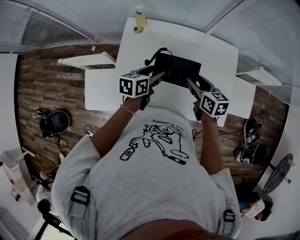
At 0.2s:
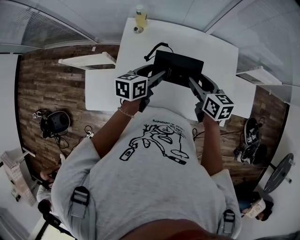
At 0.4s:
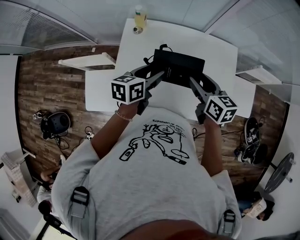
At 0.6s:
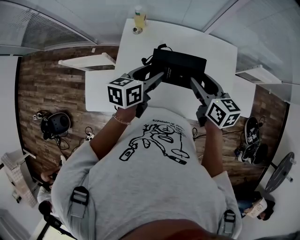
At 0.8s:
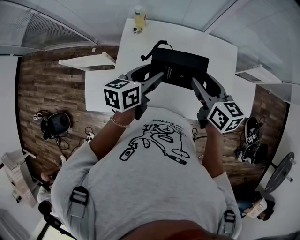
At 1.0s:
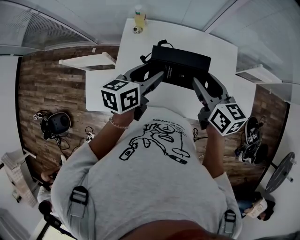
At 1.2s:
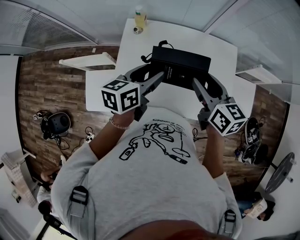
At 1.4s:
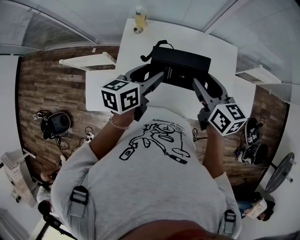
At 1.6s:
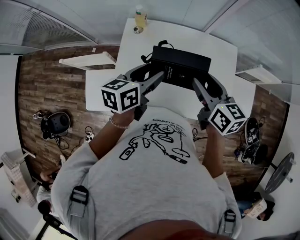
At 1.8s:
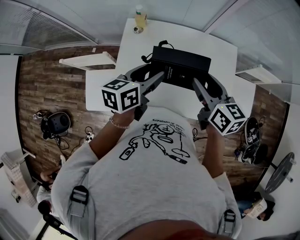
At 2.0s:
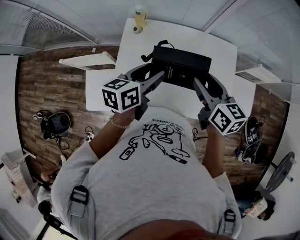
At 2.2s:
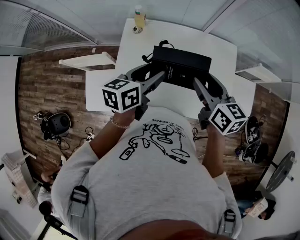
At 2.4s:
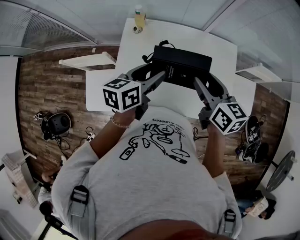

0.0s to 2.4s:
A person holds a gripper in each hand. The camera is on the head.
0.0s to 1.2s: The grippers both shift upward by some 15 cm.
1.2s to 2.4s: Both grippers stay put.

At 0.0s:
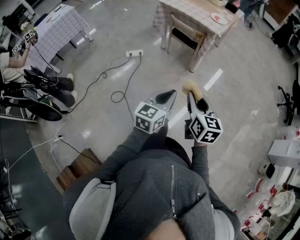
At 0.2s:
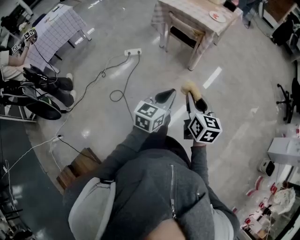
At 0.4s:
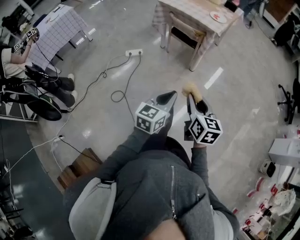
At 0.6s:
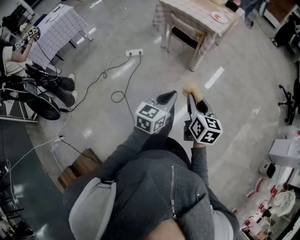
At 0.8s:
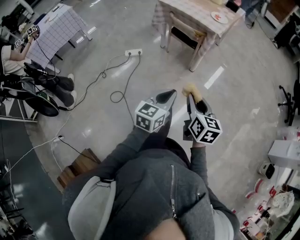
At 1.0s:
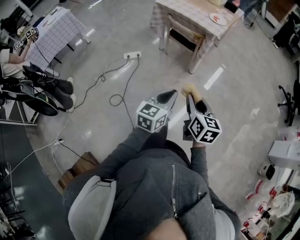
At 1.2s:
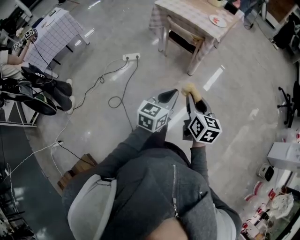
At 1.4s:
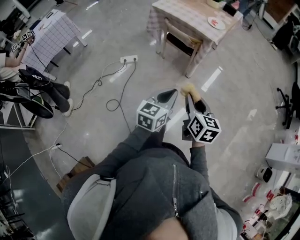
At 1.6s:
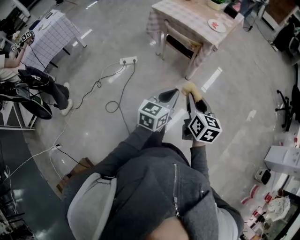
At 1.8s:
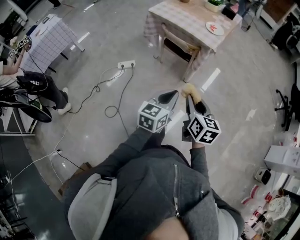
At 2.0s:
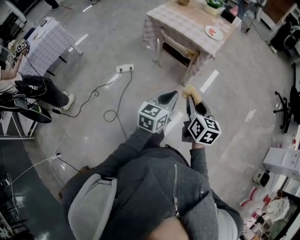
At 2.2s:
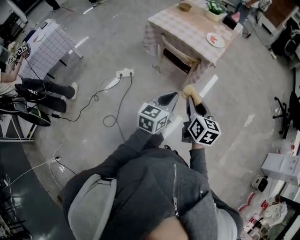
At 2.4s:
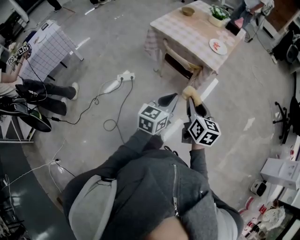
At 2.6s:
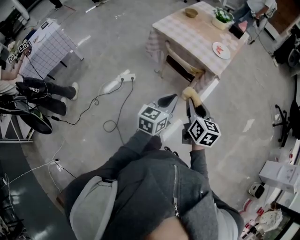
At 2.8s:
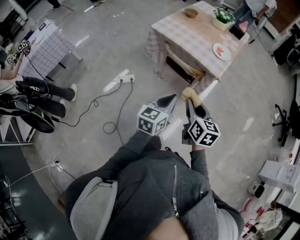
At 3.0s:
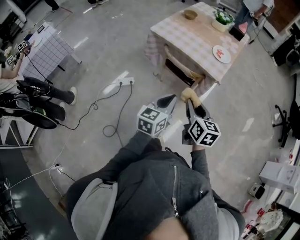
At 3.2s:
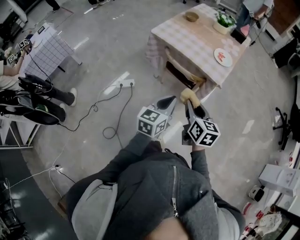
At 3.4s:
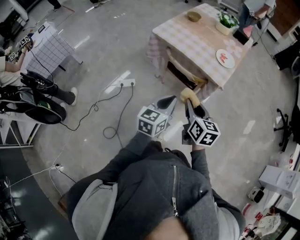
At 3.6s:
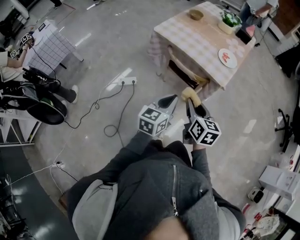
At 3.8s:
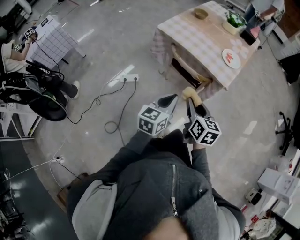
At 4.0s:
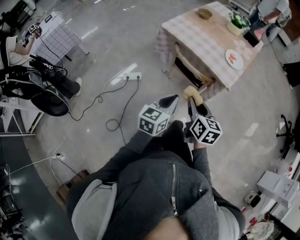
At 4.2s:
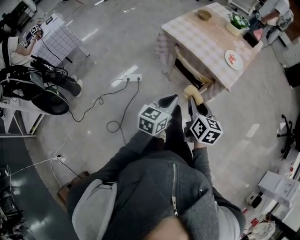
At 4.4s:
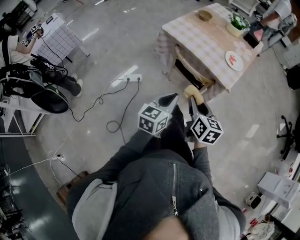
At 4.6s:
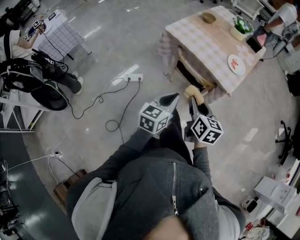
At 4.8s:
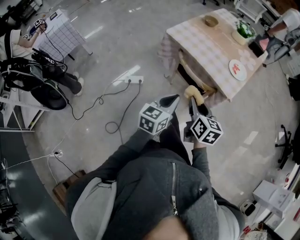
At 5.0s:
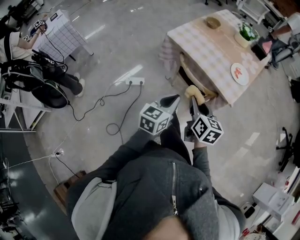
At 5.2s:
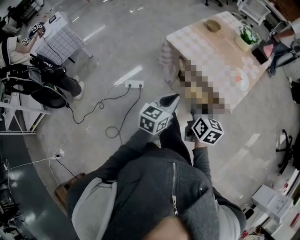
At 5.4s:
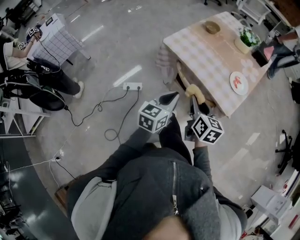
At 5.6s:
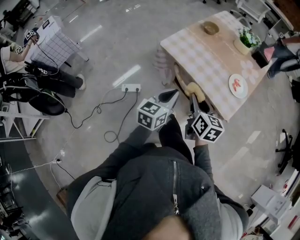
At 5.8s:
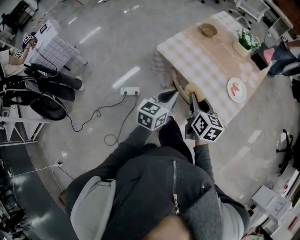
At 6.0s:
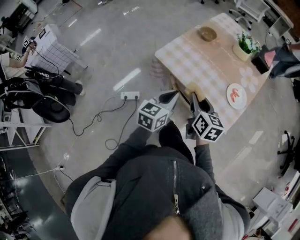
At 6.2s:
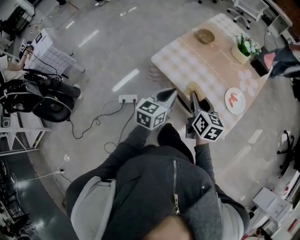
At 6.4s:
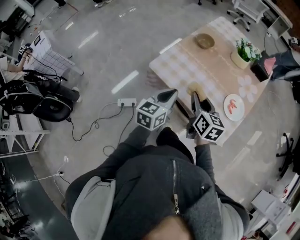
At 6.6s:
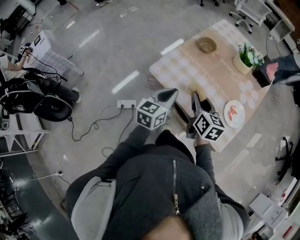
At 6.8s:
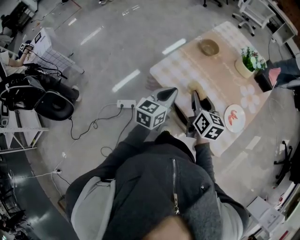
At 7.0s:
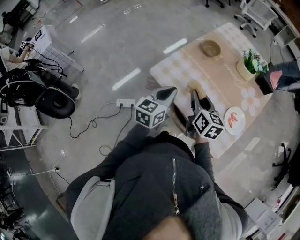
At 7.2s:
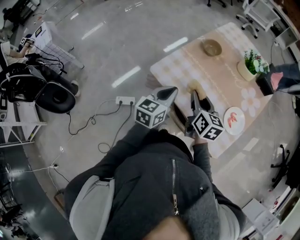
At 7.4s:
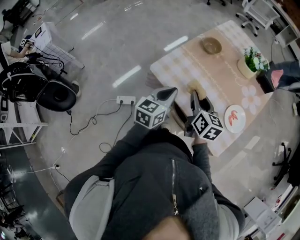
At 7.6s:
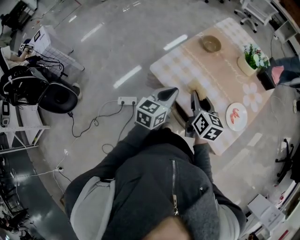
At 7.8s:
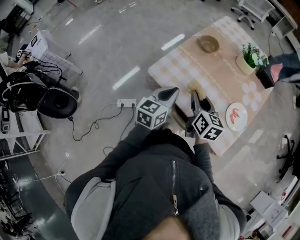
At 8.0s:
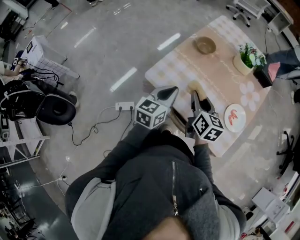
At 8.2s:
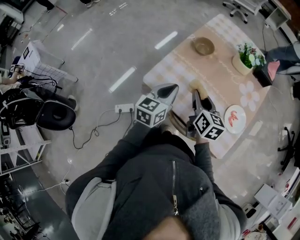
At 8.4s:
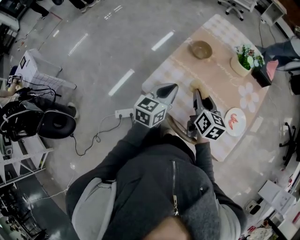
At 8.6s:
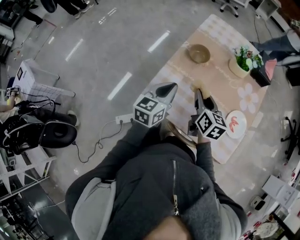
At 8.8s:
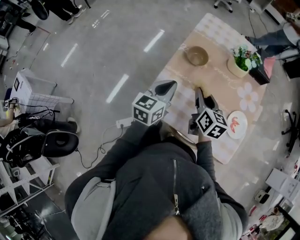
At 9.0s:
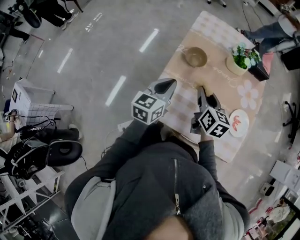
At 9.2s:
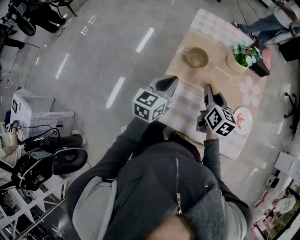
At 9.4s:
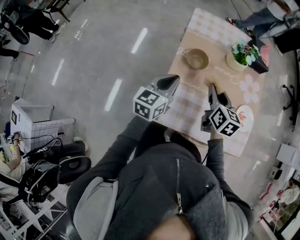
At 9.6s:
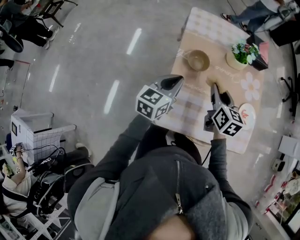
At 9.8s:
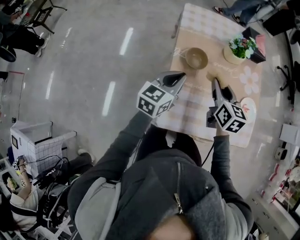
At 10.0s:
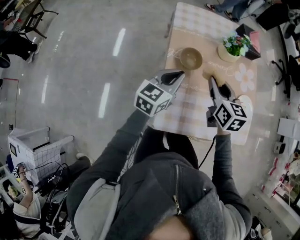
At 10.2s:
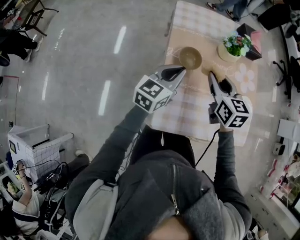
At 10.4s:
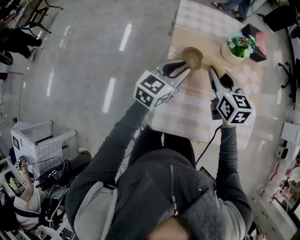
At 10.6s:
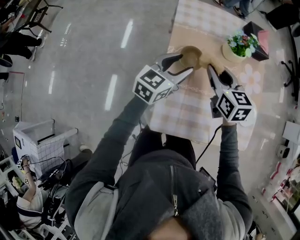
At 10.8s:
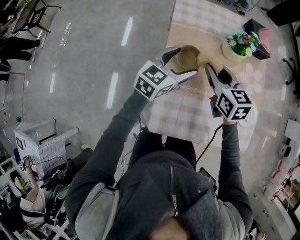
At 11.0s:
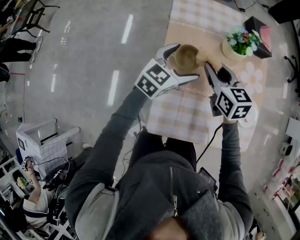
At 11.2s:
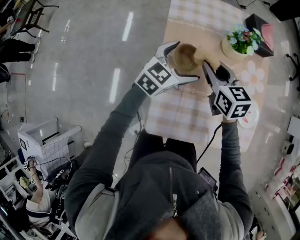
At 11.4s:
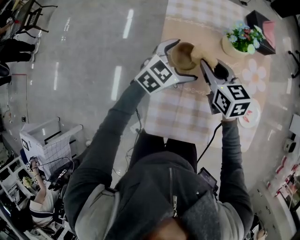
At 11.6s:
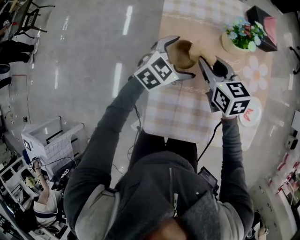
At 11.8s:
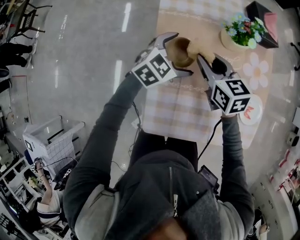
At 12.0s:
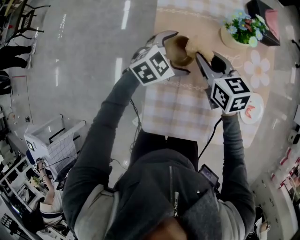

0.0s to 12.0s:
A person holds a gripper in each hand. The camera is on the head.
0.0s to 1.6s: Both grippers travel together forward, some 15 cm.
1.6s to 3.0s: Both grippers travel together forward, about 25 cm.
3.0s to 4.4s: The right gripper goes approximately 5 cm forward.
4.4s to 6.0s: The grippers both shift forward by some 30 cm.
6.0s to 7.6s: Both grippers move forward, some 15 cm.
7.6s to 9.0s: Both grippers move forward, about 20 cm. The right gripper rotates about 20 degrees.
9.0s to 10.4s: The right gripper travels forward and upward by about 10 cm. The left gripper travels forward by about 10 cm, and changes its angle by about 30 degrees.
10.4s to 12.0s: The right gripper is displaced downward and forward by roughly 10 cm. Meanwhile the left gripper goes approximately 15 cm downward, forward and to the right, turns by some 40 degrees, and opens.

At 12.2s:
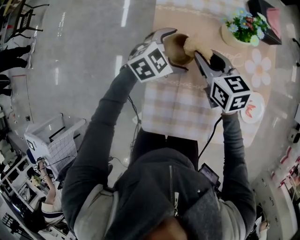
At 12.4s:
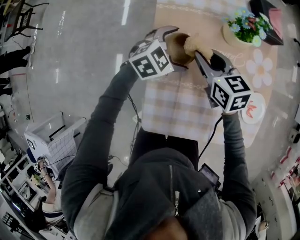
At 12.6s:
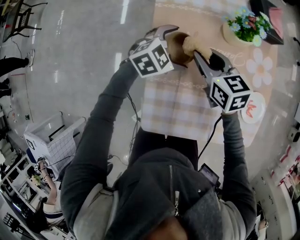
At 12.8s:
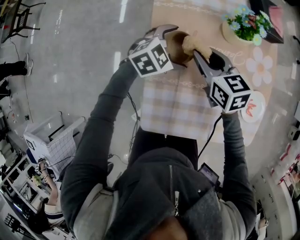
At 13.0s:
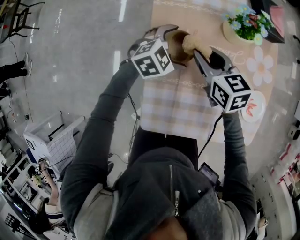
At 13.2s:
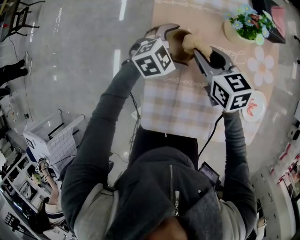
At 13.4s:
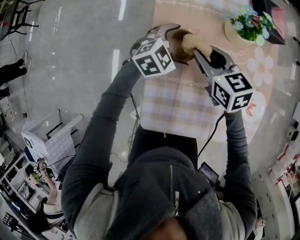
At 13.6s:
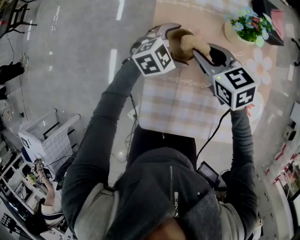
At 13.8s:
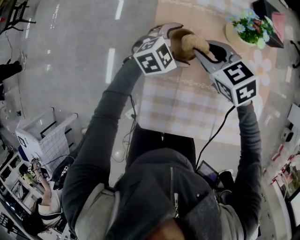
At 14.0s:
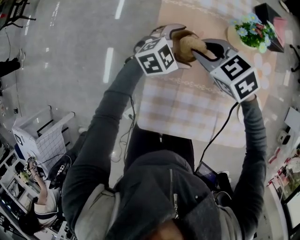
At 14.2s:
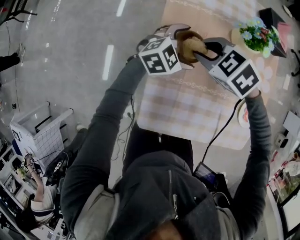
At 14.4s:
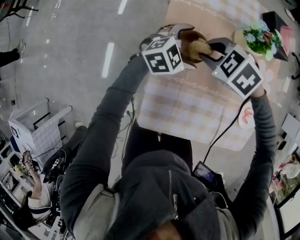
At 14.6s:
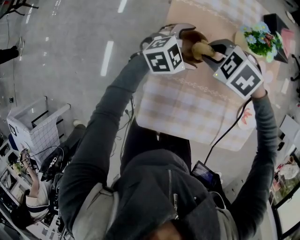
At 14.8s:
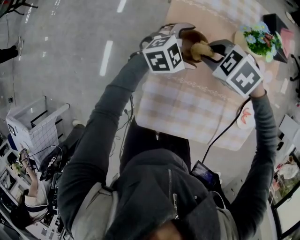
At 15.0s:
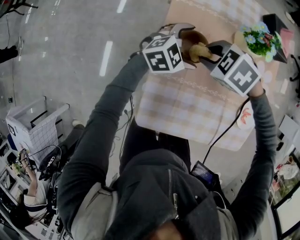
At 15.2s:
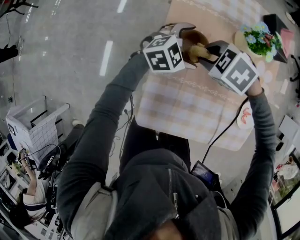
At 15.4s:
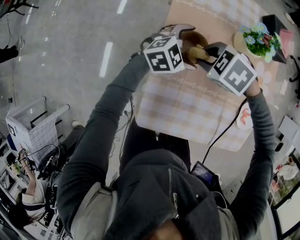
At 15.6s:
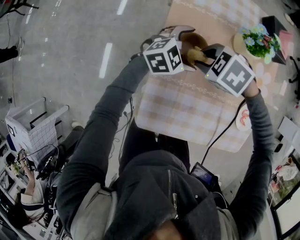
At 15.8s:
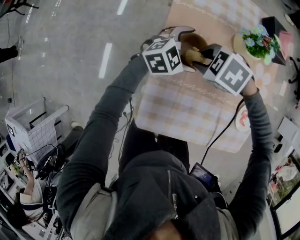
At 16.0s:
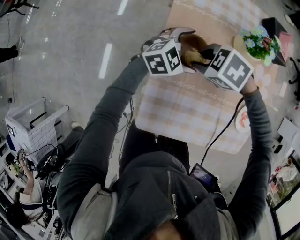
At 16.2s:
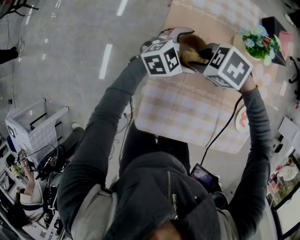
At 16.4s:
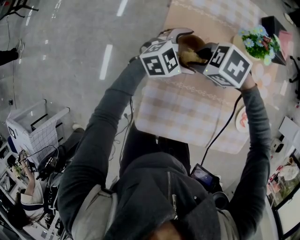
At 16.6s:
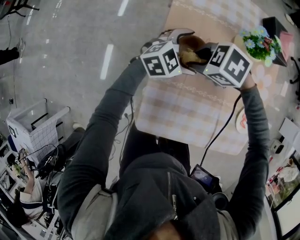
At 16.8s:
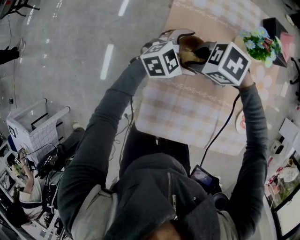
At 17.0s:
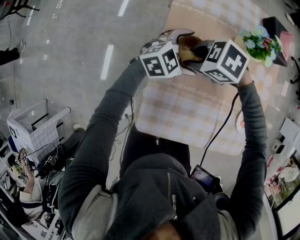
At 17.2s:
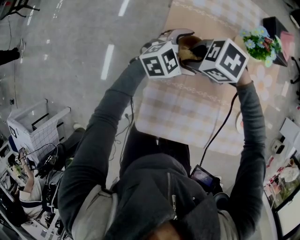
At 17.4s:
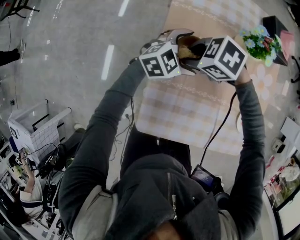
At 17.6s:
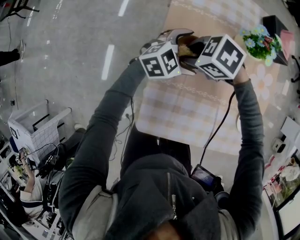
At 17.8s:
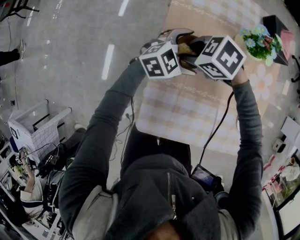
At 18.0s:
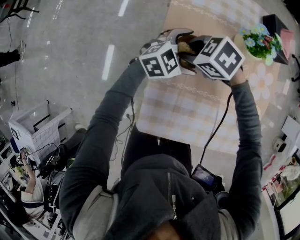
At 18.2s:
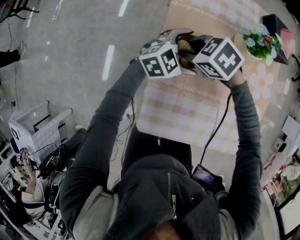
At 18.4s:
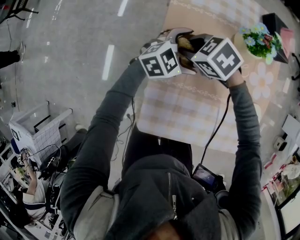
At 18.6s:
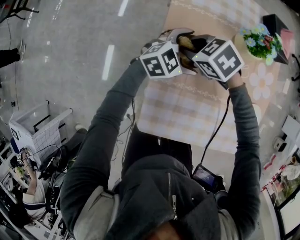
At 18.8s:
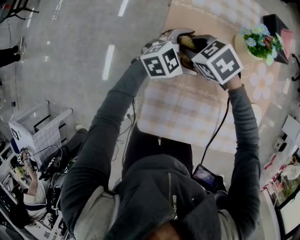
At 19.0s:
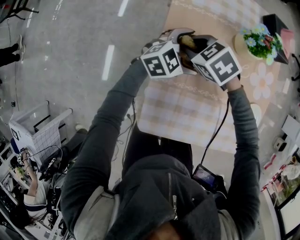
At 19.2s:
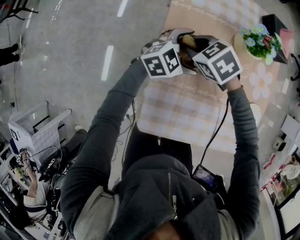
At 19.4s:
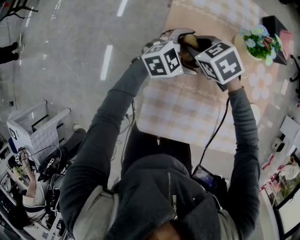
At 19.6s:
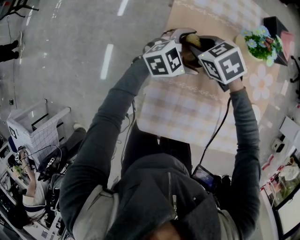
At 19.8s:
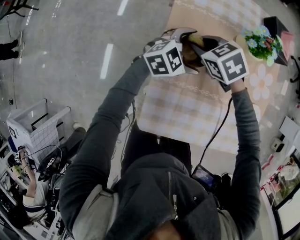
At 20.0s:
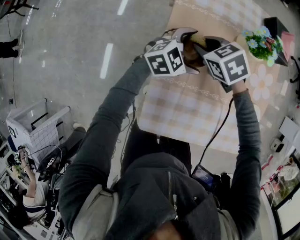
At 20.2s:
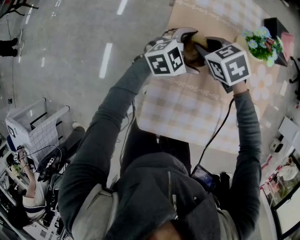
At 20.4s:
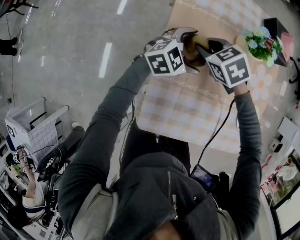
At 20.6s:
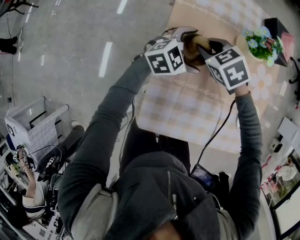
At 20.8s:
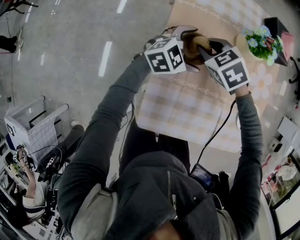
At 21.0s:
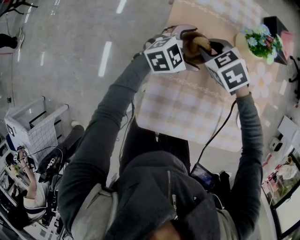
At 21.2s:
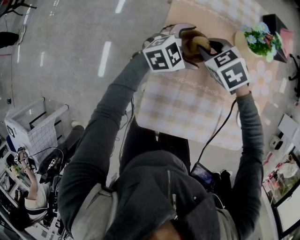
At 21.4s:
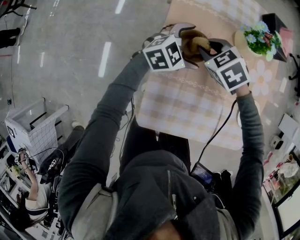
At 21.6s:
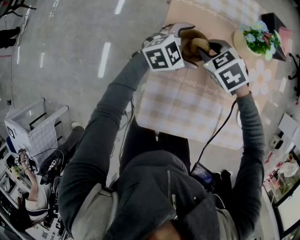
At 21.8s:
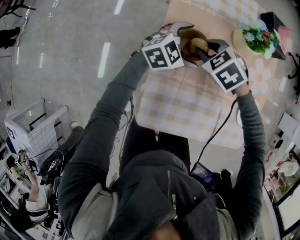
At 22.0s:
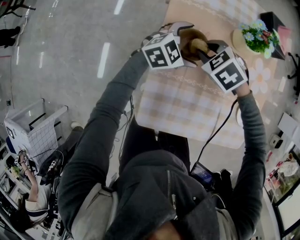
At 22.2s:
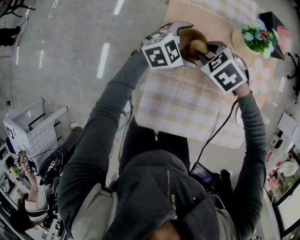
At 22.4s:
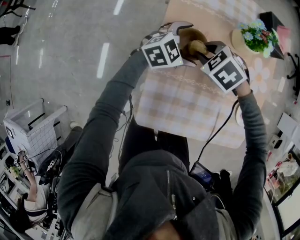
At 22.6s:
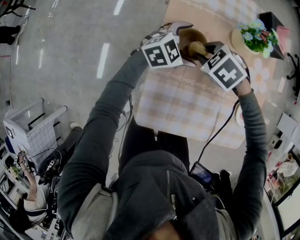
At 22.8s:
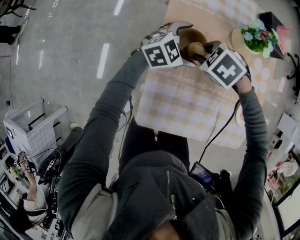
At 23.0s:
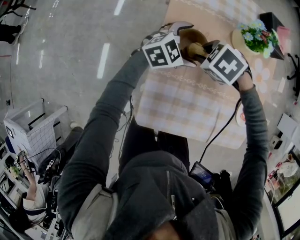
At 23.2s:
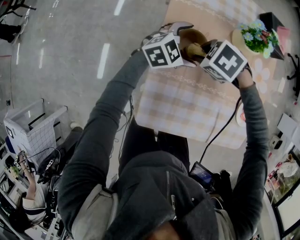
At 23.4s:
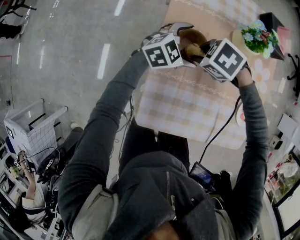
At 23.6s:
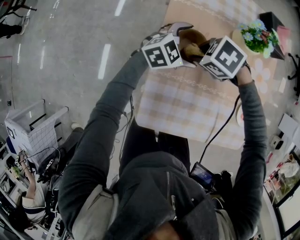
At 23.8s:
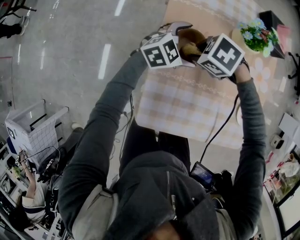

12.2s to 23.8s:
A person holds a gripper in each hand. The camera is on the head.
12.2s to 13.6s: The grippers move only a little.
13.6s to 15.0s: The right gripper tilts its fingers approximately 30 degrees downward.
15.0s to 16.6s: The grippers make only small movements.
16.6s to 18.0s: The grippers stay close to where they were, moving slightly.
18.0s to 19.4s: The grippers make only small movements.
19.4s to 21.0s: There are only small adjustments of the grippers.
21.0s to 22.4s: The grippers make only small movements.
22.4s to 23.8s: The grippers stay close to where they were, moving slightly.
